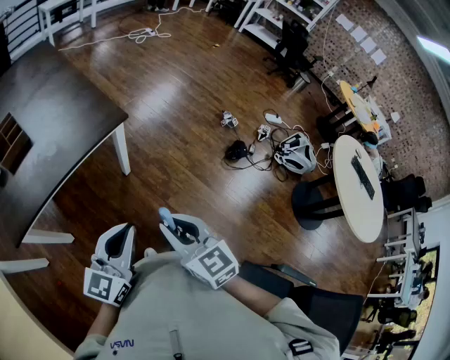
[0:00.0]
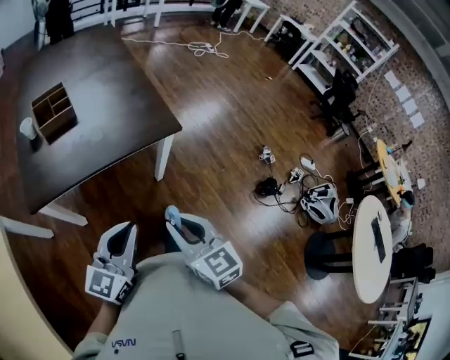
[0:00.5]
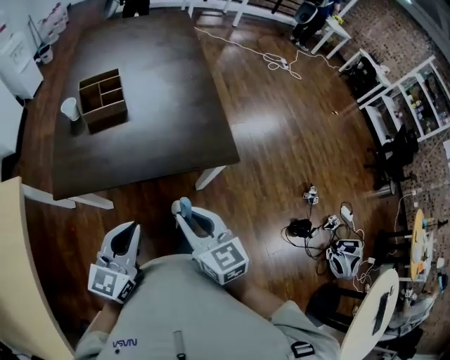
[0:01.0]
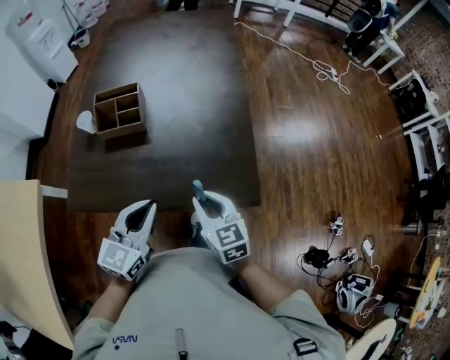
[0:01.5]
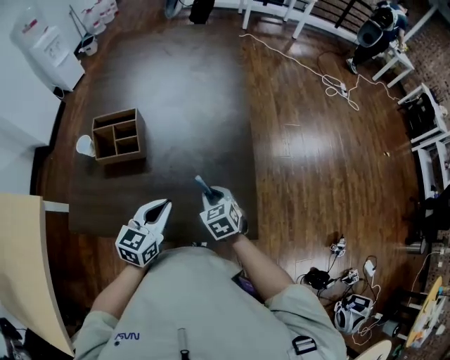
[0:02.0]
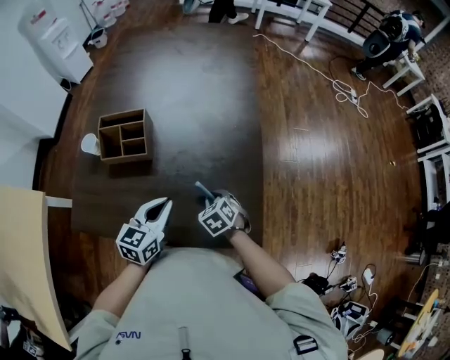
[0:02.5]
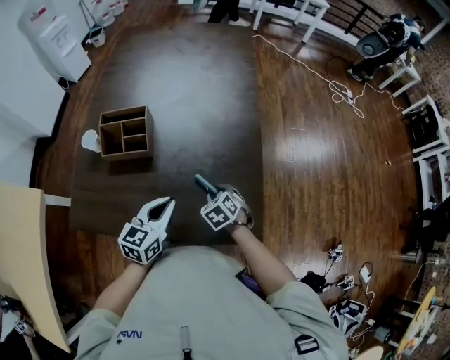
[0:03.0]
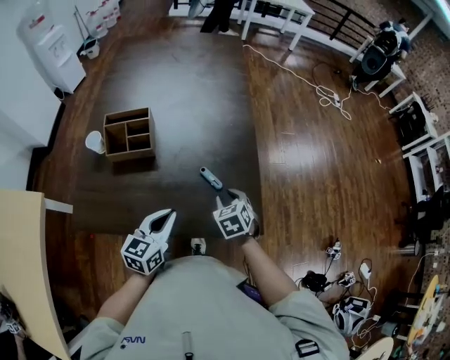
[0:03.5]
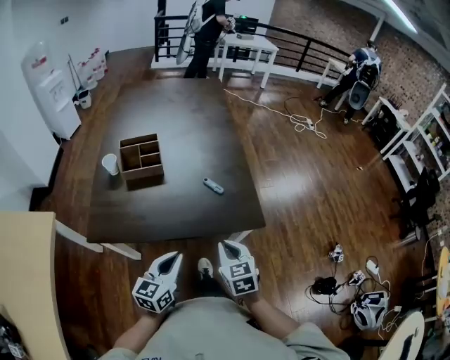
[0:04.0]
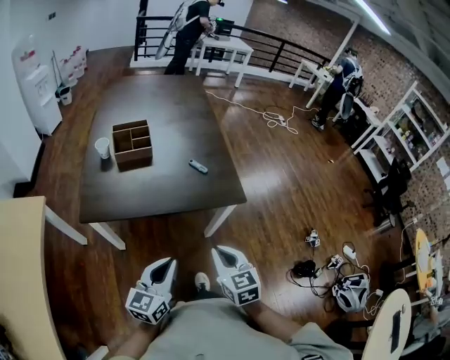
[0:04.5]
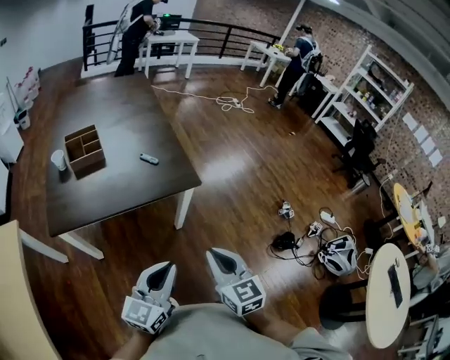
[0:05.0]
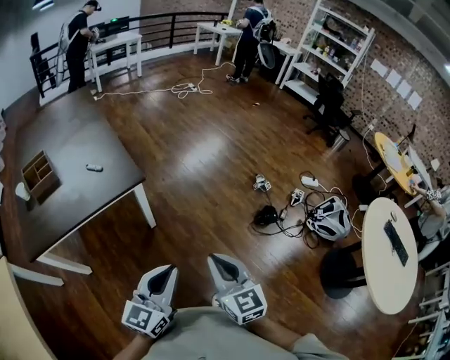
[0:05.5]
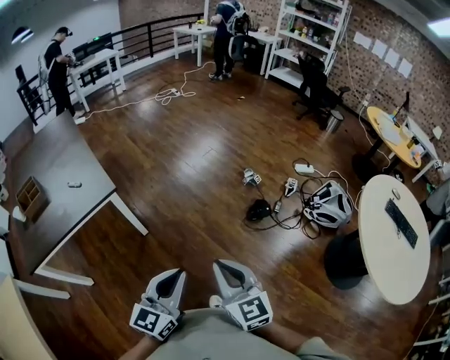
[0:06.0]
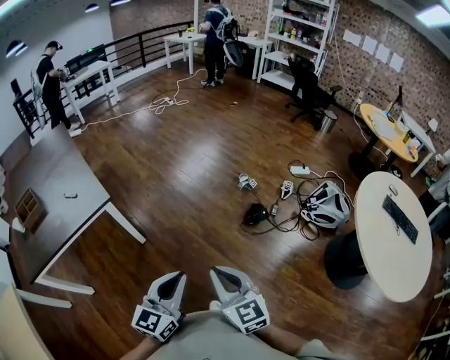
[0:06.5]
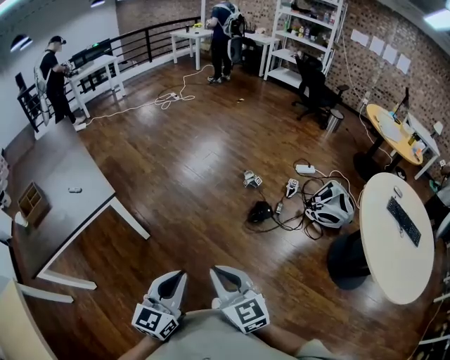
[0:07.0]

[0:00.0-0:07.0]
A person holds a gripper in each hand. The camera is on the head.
0:00.0 to 0:02.0: The two grippers travel together, about 40 cm. The right gripper changes its angle by some 50 degrees; the left gripper turns by approximately 50 degrees.
0:02.0 to 0:03.5: There are only small adjustments of the grippers.
0:03.5 to 0:05.0: The right gripper heads backward and upward, covering approximately 50 cm, tips its fingers upward by about 30 degrees, and closes. Meanwhile the left gripper heads backward, covering about 30 cm, and changes its angle by about 30 degrees.
0:05.0 to 0:07.0: Both grippers move to the right, approximately 30 cm. The left gripper turns by approximately 20 degrees.

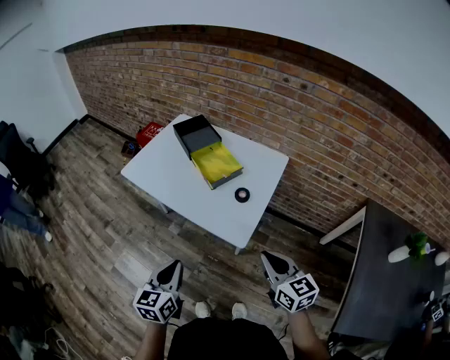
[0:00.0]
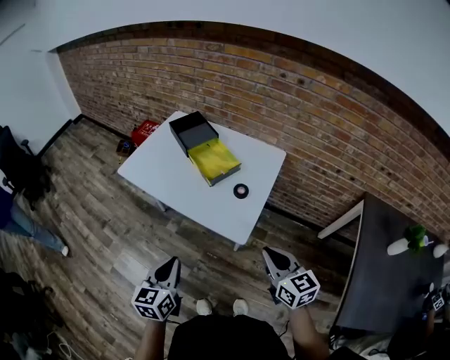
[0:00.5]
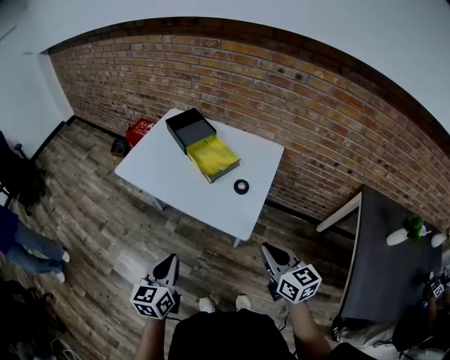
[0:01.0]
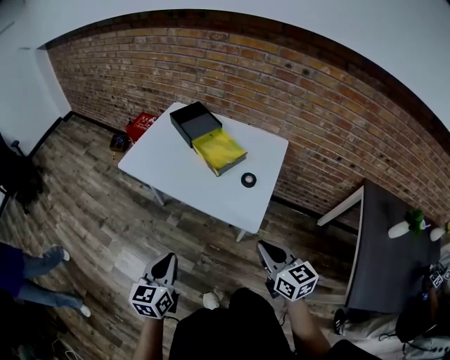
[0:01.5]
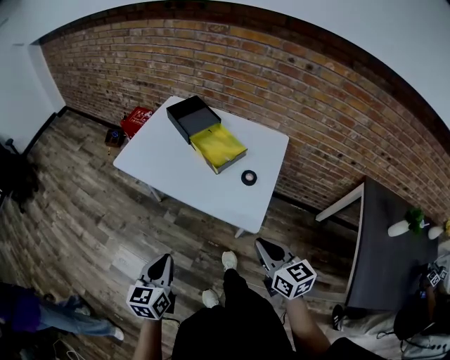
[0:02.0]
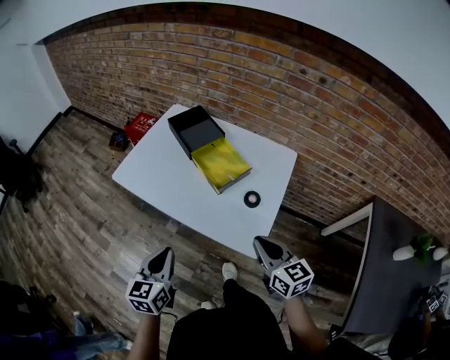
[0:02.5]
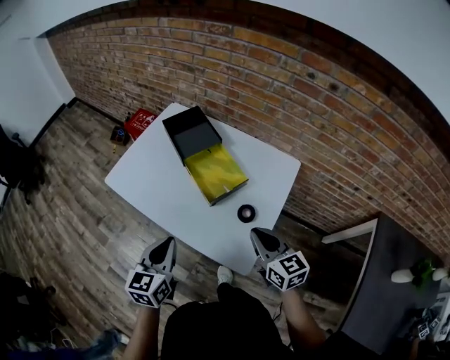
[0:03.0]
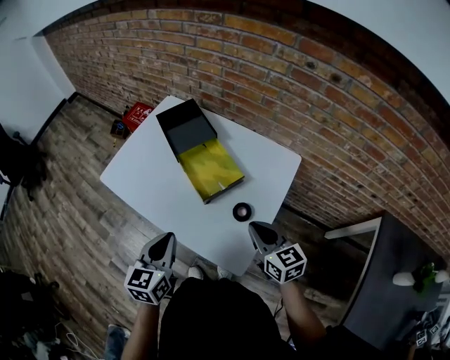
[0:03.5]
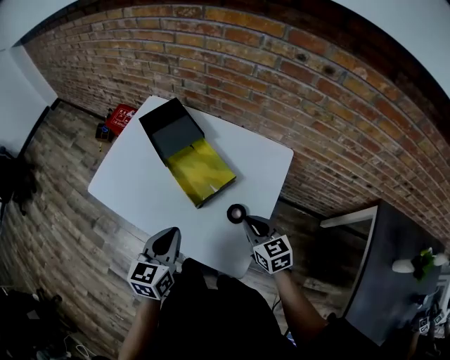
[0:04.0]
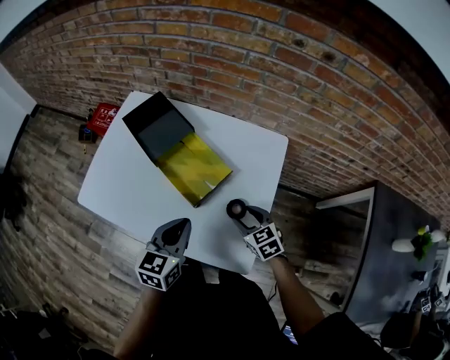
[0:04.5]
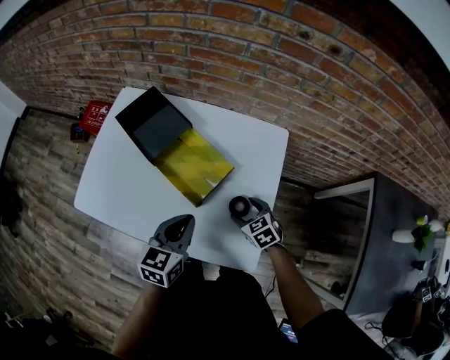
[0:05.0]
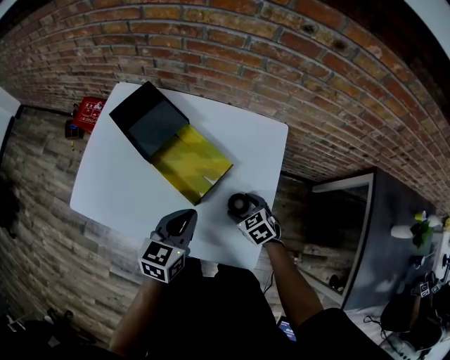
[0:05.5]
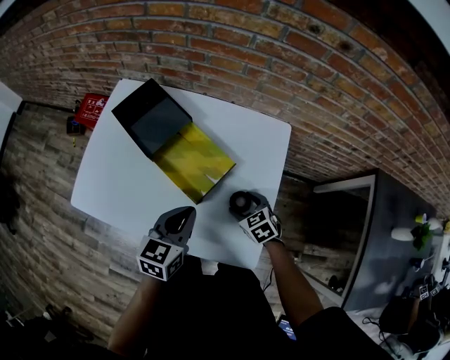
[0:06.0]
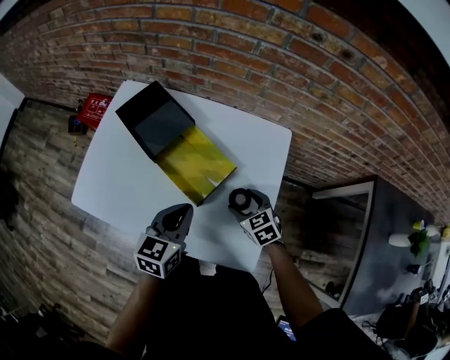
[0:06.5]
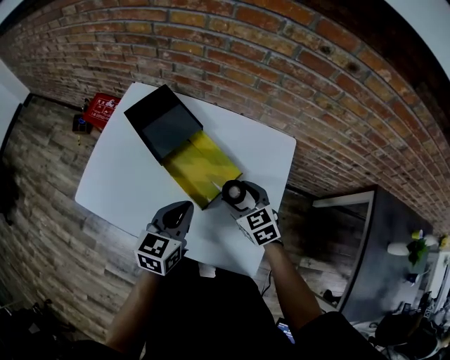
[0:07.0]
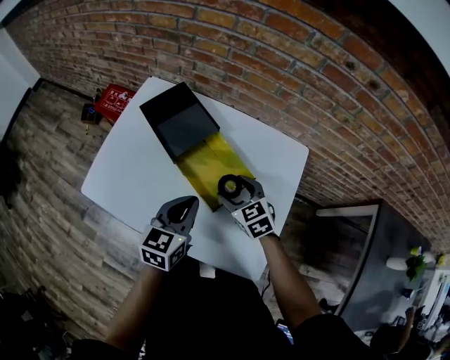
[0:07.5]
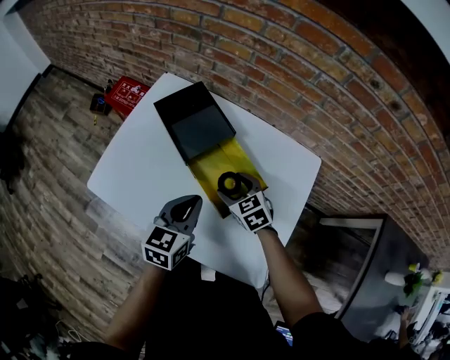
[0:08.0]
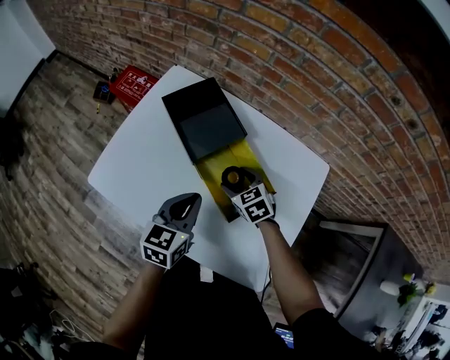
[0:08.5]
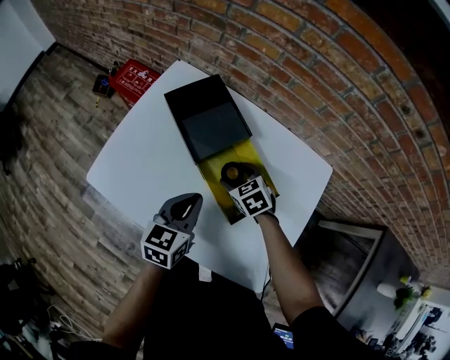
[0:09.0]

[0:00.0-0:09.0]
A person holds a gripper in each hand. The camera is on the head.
0:00.0 to 0:02.0: The two grippers go roughly 10 cm to the left.
0:02.0 to 0:04.5: The right gripper goes roughly 35 cm forward and downward, swivels some 30 degrees, and opens its fingers; the left gripper heads forward and to the right, covering some 35 cm.
0:04.5 to 0:07.0: The left gripper moves forward, some 5 cm, while the right gripper moves forward and to the left, about 10 cm, and opens up.
0:07.0 to 0:09.0: The right gripper is displaced to the left, forward and downward by approximately 20 cm. The left gripper shifts some 10 cm to the left and forward.

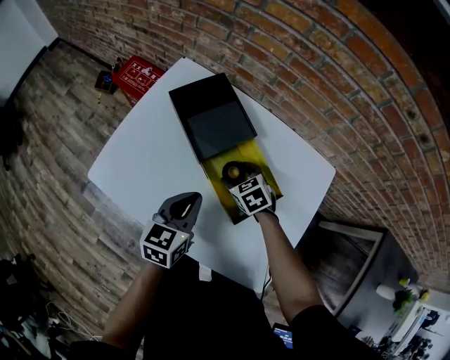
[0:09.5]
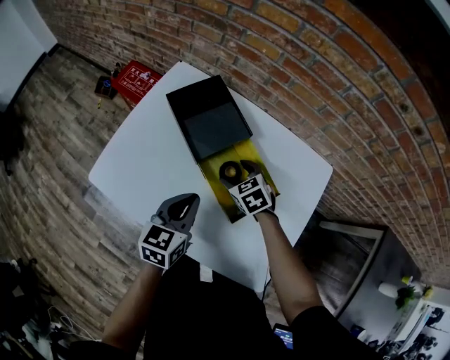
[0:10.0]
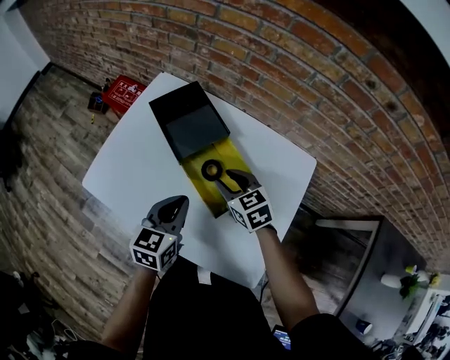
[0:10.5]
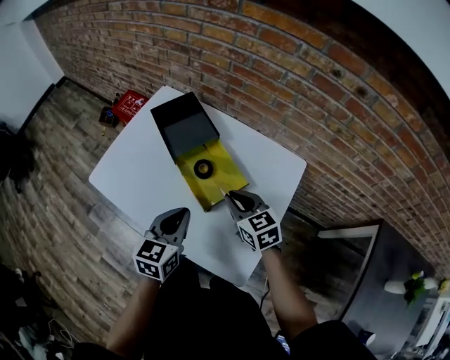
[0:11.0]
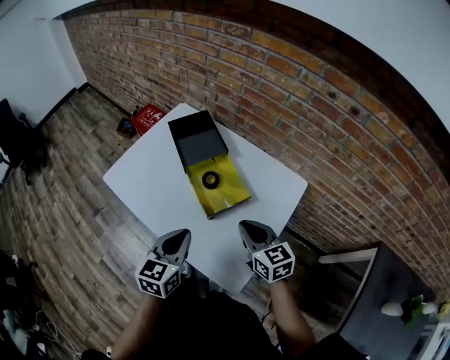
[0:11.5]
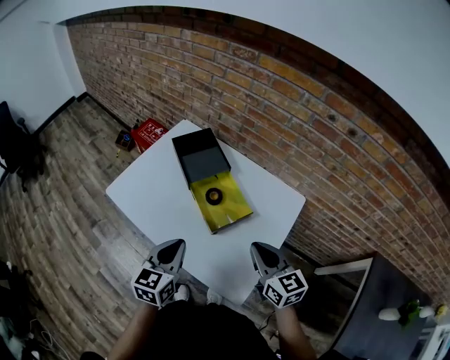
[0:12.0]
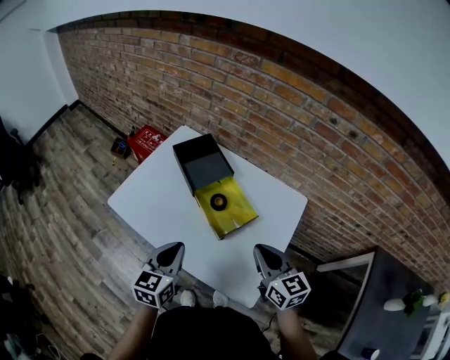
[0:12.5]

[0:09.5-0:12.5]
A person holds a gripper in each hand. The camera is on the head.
0:09.5 to 0:11.0: The right gripper goes some 20 cm upward, backward and to the right, swivels about 30 degrees, and closes. Meanwhile the left gripper moves backward, to the right and upward, approximately 15 cm.
0:11.0 to 0:12.5: The right gripper is displaced backward and upward by some 15 cm. Meanwhile the left gripper heads to the left, covering roughly 10 cm.

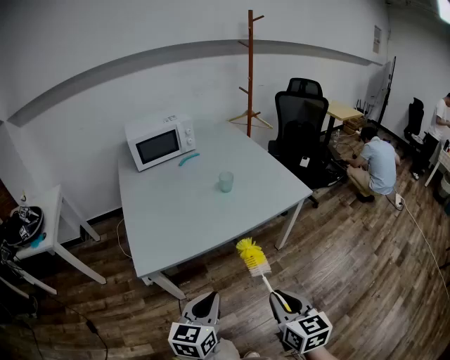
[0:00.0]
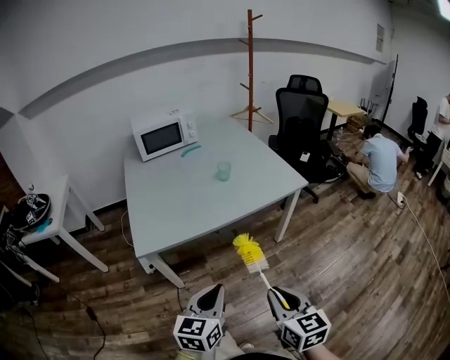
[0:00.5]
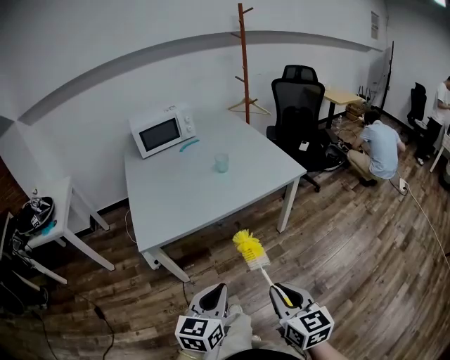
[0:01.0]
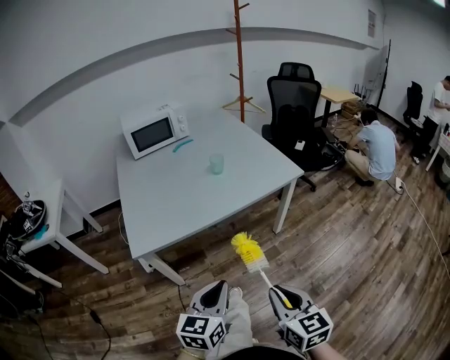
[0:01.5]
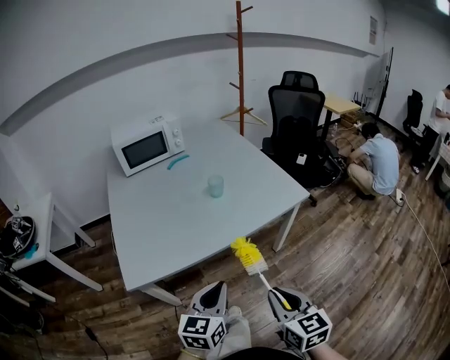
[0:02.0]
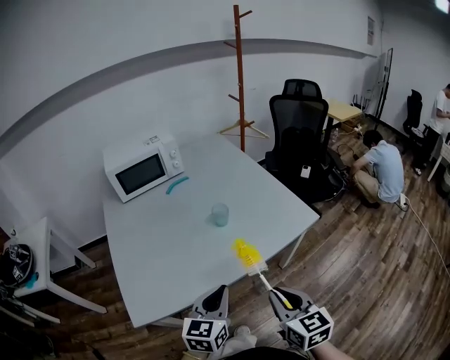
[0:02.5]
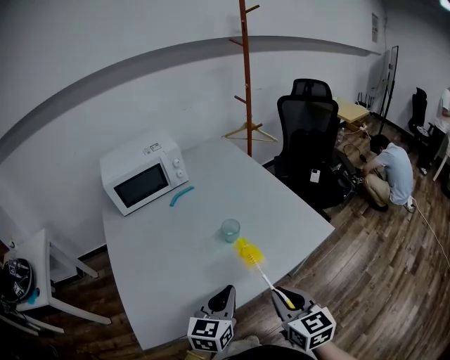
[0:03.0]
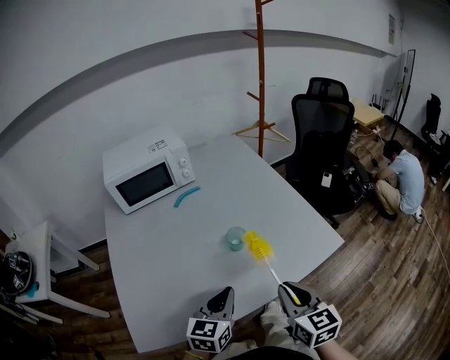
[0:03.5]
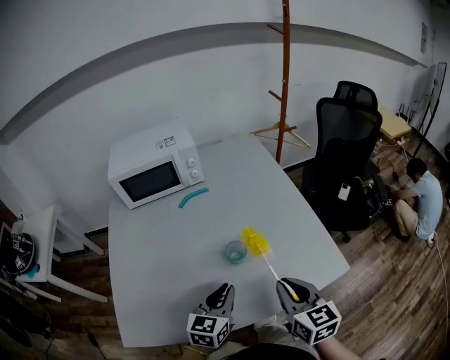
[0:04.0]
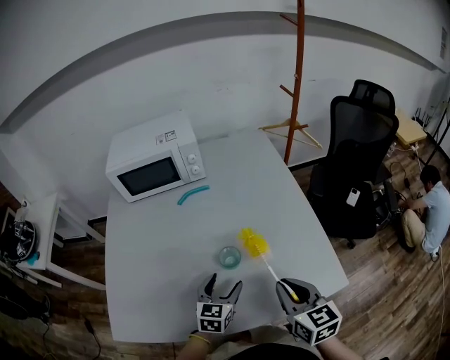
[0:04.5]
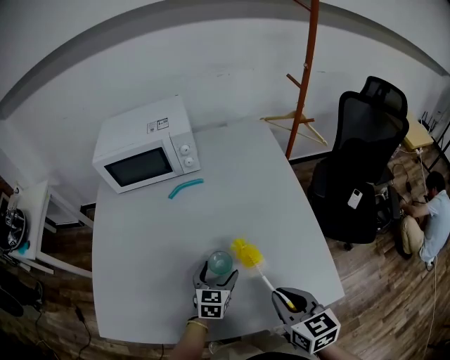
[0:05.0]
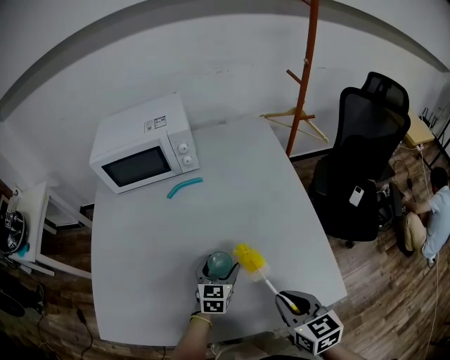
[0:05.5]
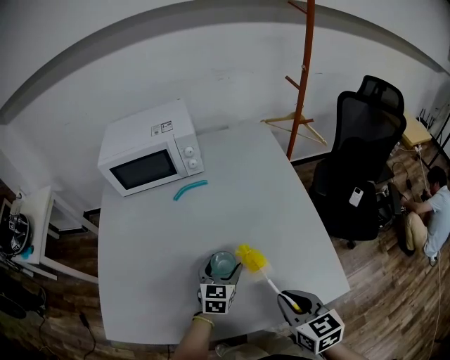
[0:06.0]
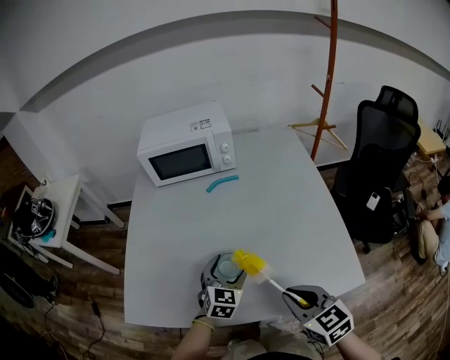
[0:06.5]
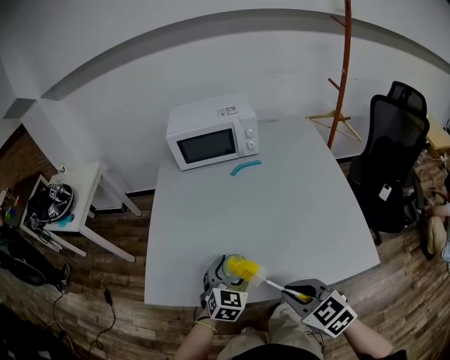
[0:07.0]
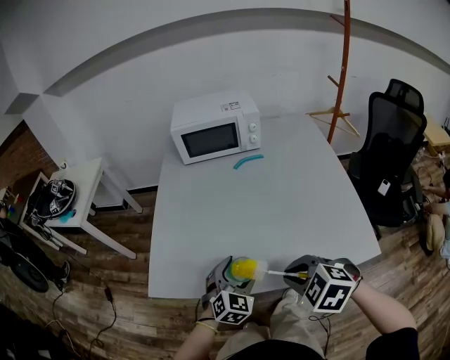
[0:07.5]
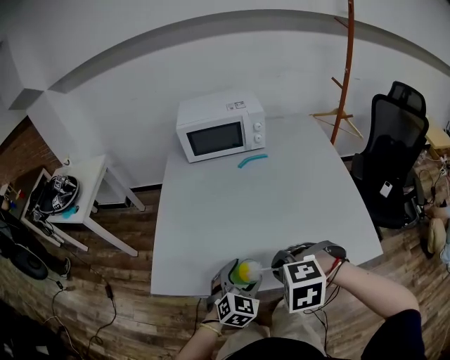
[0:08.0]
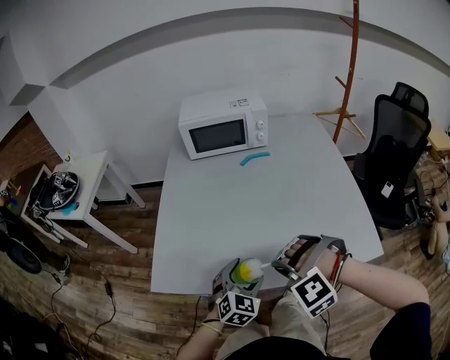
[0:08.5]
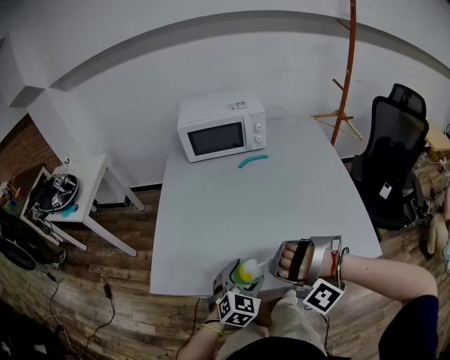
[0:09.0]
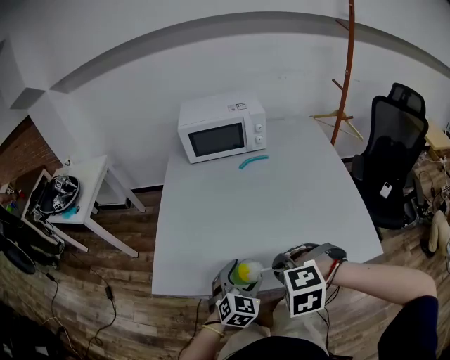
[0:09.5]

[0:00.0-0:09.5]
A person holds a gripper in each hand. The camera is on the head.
0:00.0 to 0:02.0: The right gripper shifts some 5 cm forward. Meanwhile the left gripper shifts about 10 cm forward and to the right.
0:02.0 to 0:04.0: Both grippers travel together forward, approximately 35 cm.
0:04.0 to 0:05.5: The left gripper moves forward and downward, approximately 20 cm, and opens. Meanwhile the right gripper goes roughly 10 cm downward, to the right and forward.
0:05.5 to 0:07.5: The two grippers go some 25 cm to the left and backward. The right gripper rotates around the line of its fingers by about 50 degrees, counterclockwise from behind. The left gripper changes its angle by some 30 degrees.
0:07.5 to 0:09.5: The right gripper rotates about 30 degrees.
